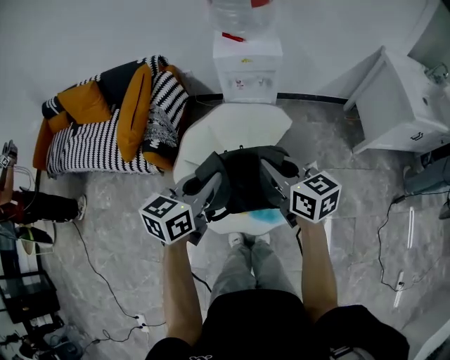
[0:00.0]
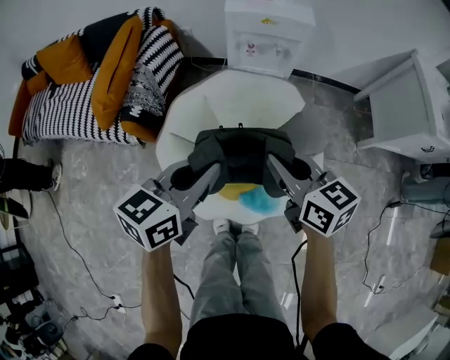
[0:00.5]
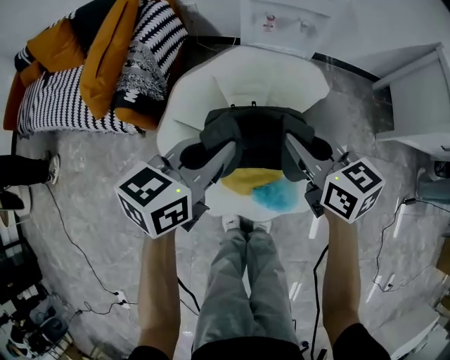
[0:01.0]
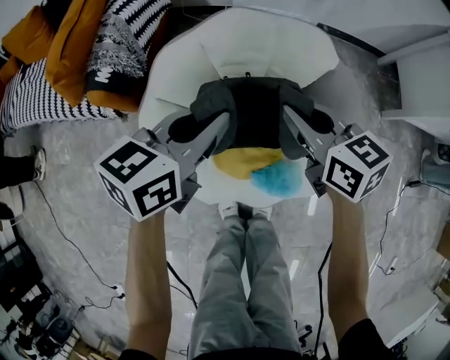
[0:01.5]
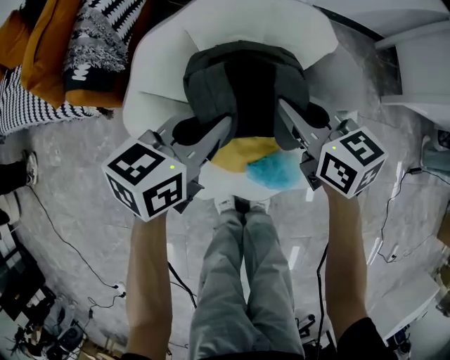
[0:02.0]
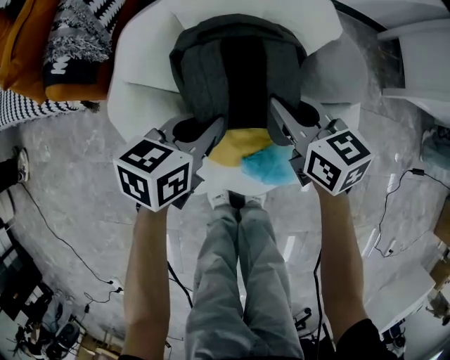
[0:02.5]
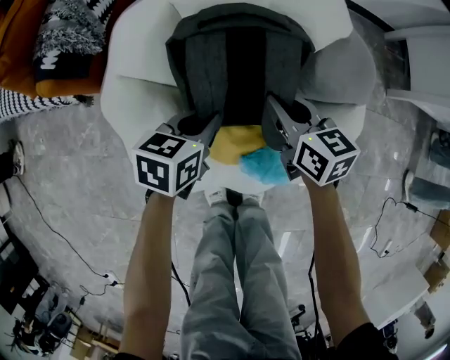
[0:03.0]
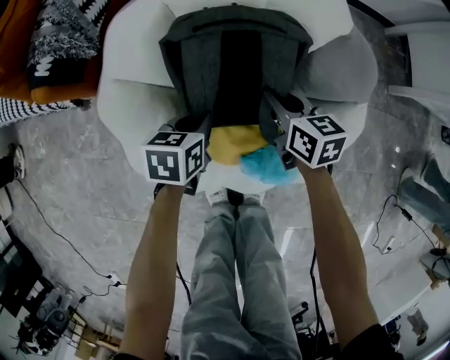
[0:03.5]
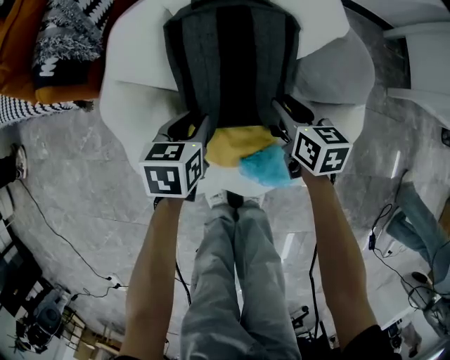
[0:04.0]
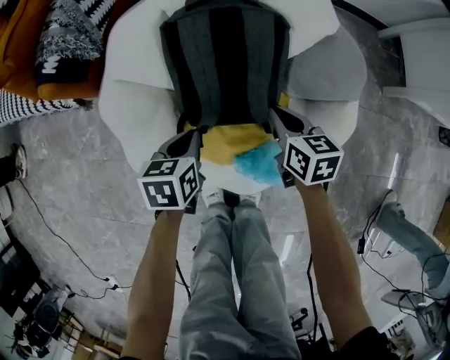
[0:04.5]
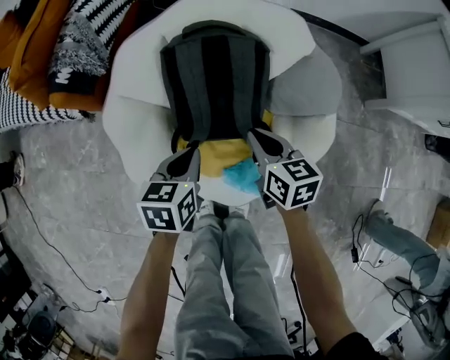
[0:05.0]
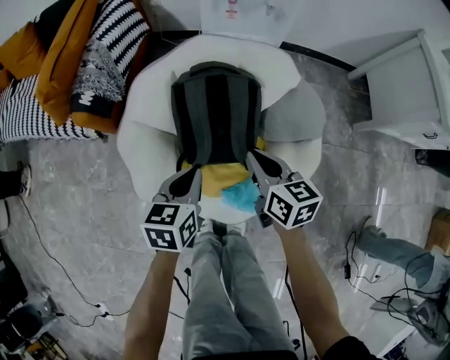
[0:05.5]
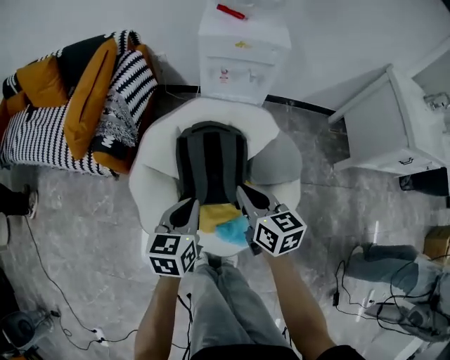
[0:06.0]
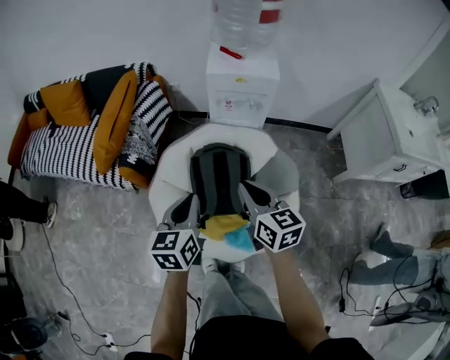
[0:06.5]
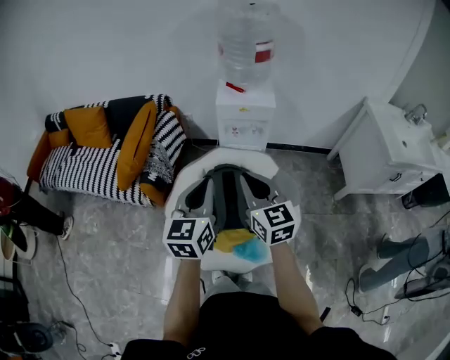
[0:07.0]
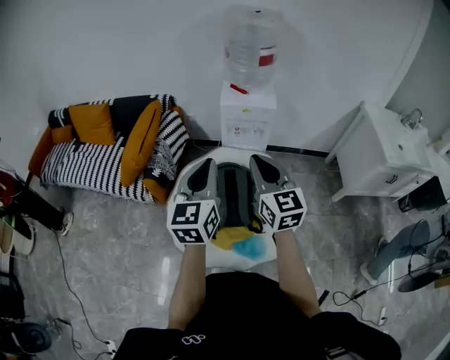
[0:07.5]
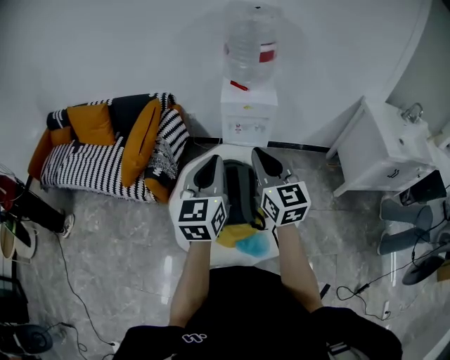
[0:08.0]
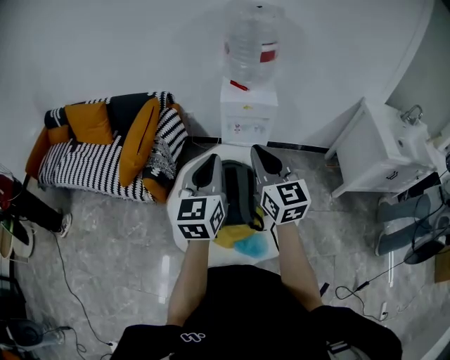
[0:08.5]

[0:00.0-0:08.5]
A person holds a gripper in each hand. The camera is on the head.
0:00.0 to 0:02.0: The grippers both shift downward by roughly 35 cm.
0:02.0 to 0:04.0: The two grippers go approximately 20 cm downward. The right gripper opens its fingers, while the left gripper swivels about 30 degrees, and opens.
0:04.0 to 0:06.5: The grippers both shift upward by some 50 cm. The right gripper rotates roughly 20 degrees, and closes up. Meanwhile the left gripper swivels roughly 30 degrees, and closes.
0:06.5 to 0:08.5: Both grippers move upward, about 20 cm. The left gripper swivels approximately 20 degrees, while the right gripper turns by approximately 30 degrees.

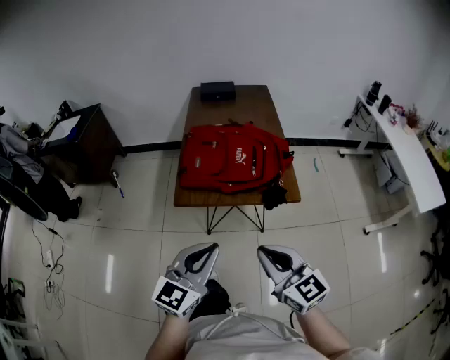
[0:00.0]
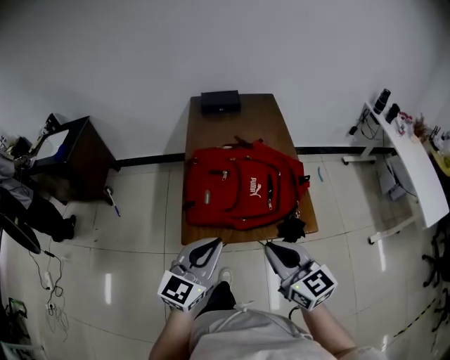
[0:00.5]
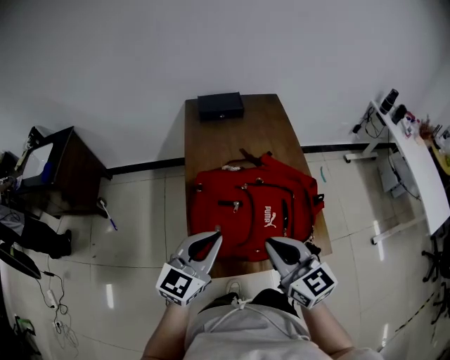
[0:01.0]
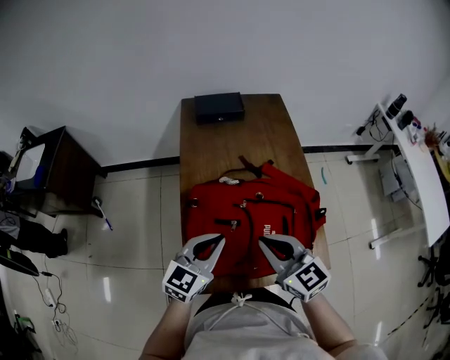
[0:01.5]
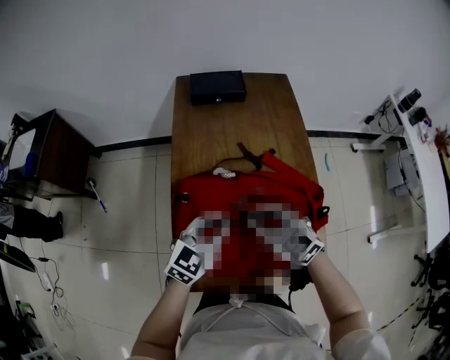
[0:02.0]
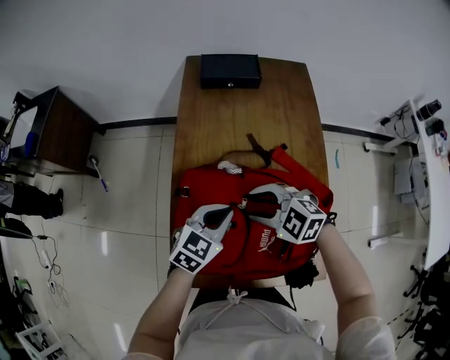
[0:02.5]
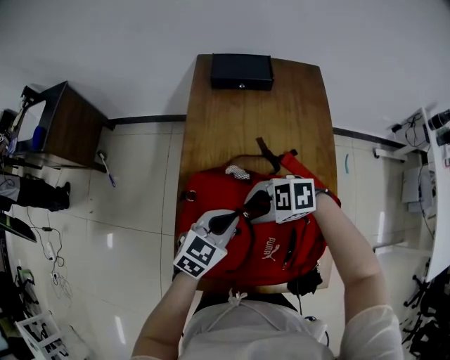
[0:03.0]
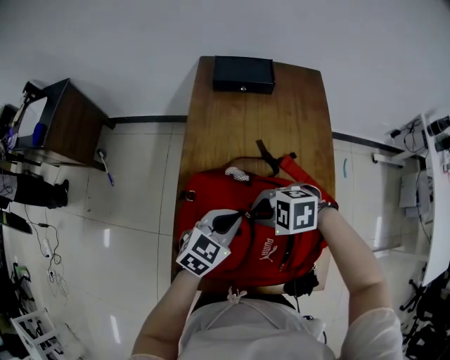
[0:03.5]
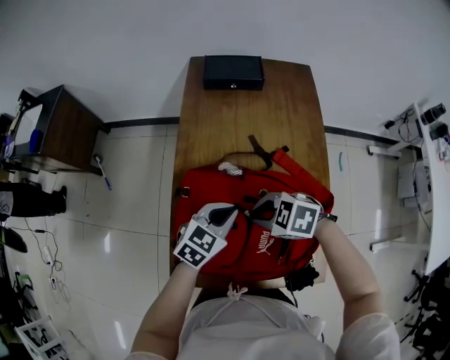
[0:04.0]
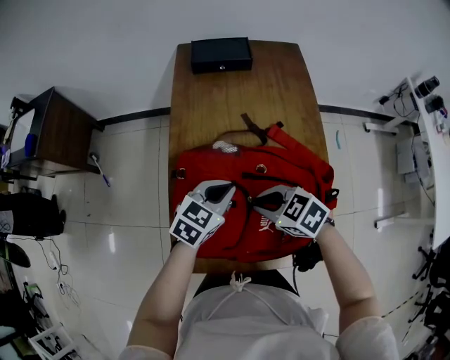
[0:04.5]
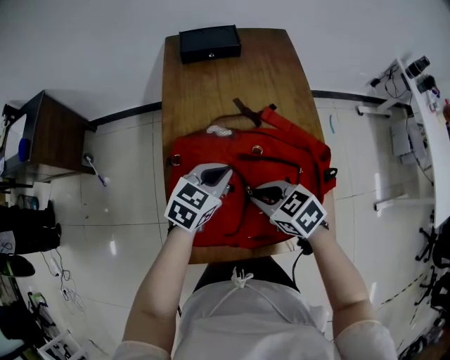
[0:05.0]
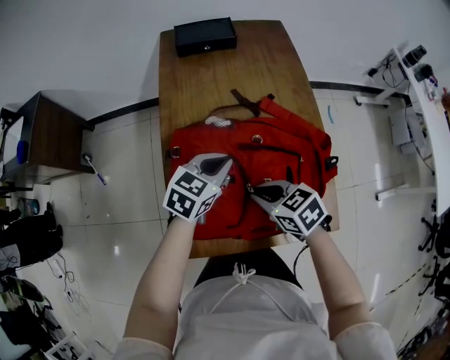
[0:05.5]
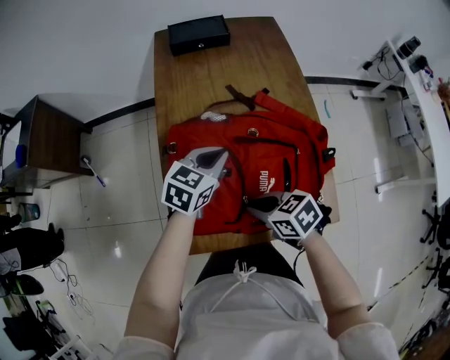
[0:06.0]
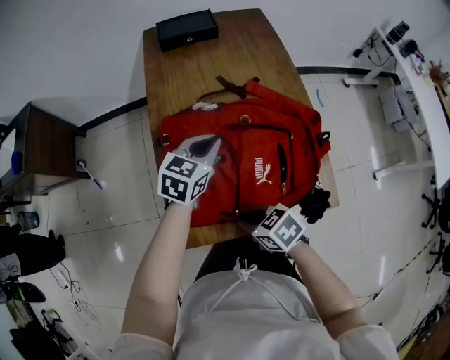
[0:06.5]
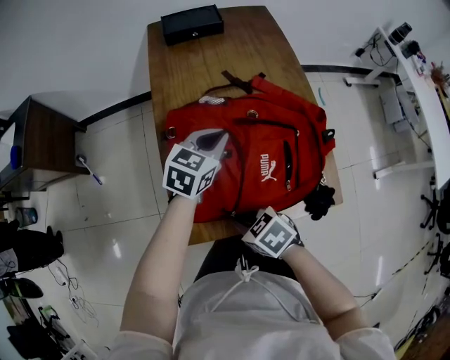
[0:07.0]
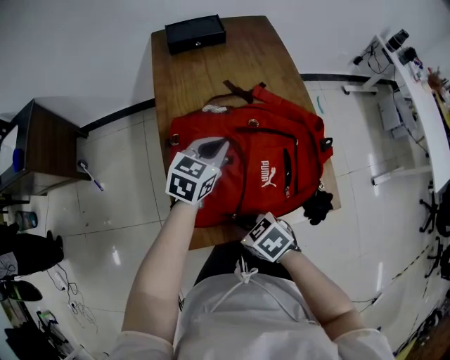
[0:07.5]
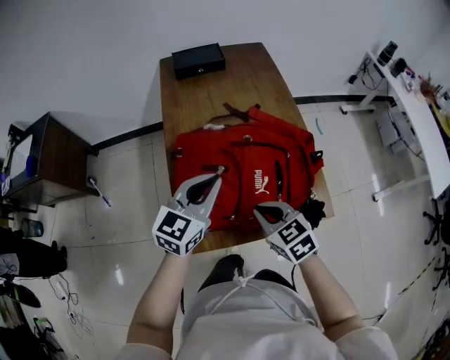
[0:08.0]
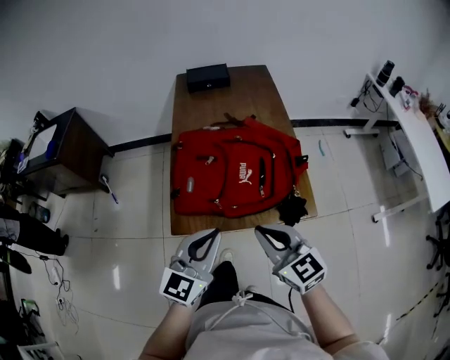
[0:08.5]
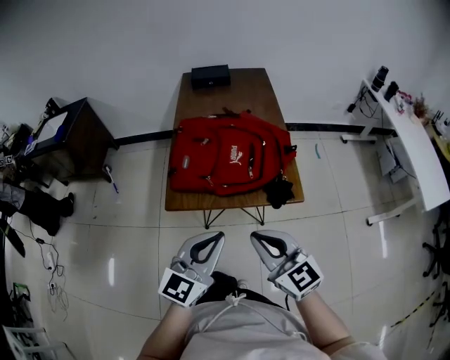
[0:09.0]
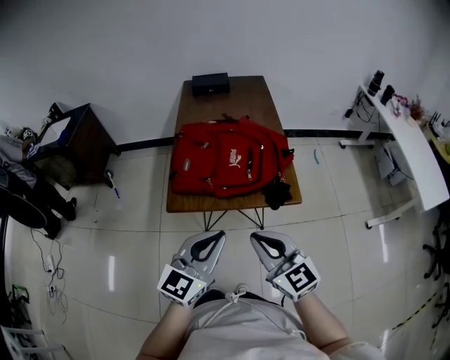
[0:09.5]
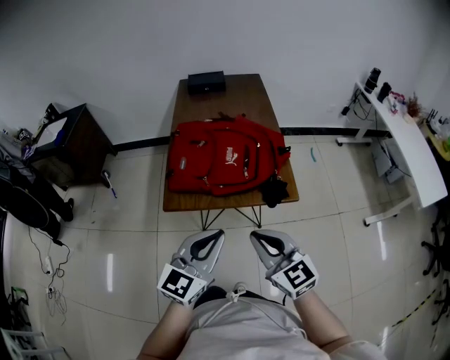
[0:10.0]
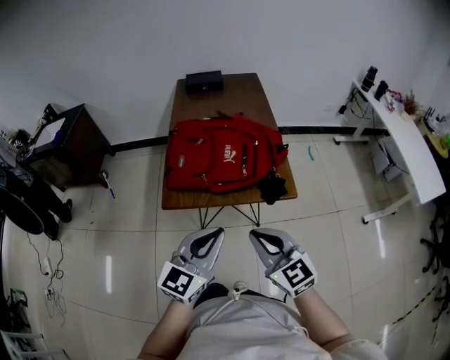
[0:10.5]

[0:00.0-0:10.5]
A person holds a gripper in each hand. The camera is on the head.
0:00.0 to 0:02.0: Both grippers are carried forward, about 50 cm. The right gripper turns by some 30 degrees.
0:02.0 to 0:04.0: The two grippers go about 5 cm downward. The right gripper turns by some 40 degrees, and opens and closes again.
0:04.0 to 0:06.5: The right gripper changes place by some 20 cm, and rolls clockwise, seen from behind, by about 40 degrees.
0:06.5 to 0:08.5: The left gripper moves backward and upward, about 35 cm, and turns by about 30 degrees, while the right gripper shifts roughly 25 cm upward, backward and to the right, and points its fingers some 30 degrees further upward.
0:08.5 to 0:10.5: Both grippers travel together backward, approximately 15 cm.

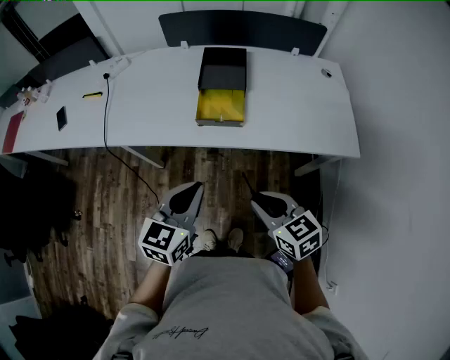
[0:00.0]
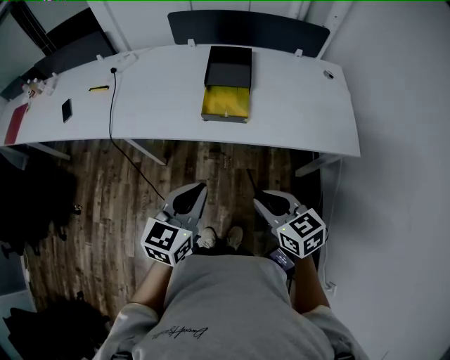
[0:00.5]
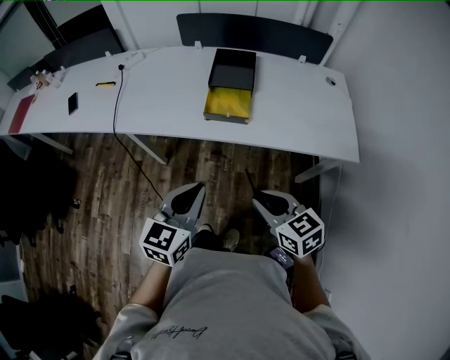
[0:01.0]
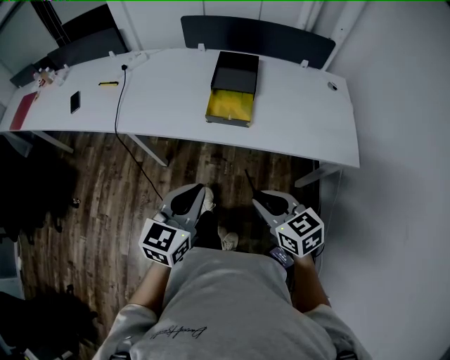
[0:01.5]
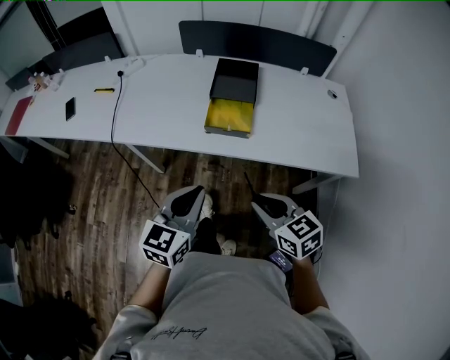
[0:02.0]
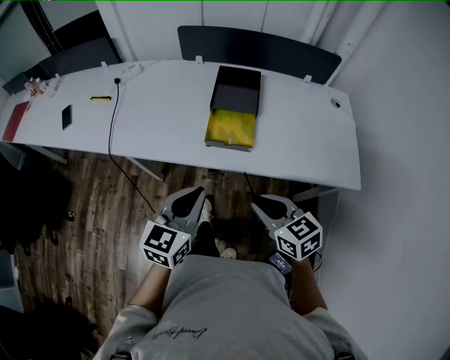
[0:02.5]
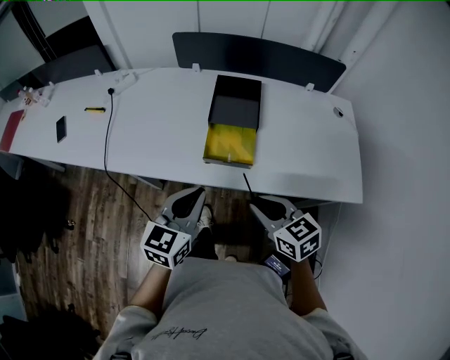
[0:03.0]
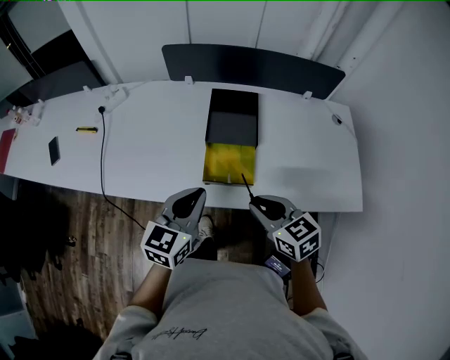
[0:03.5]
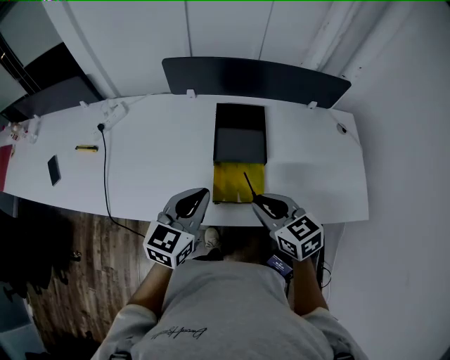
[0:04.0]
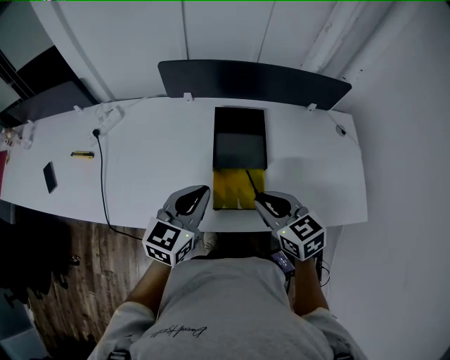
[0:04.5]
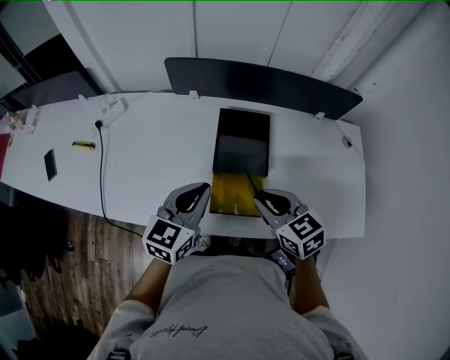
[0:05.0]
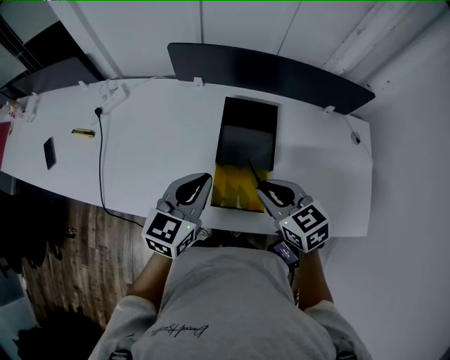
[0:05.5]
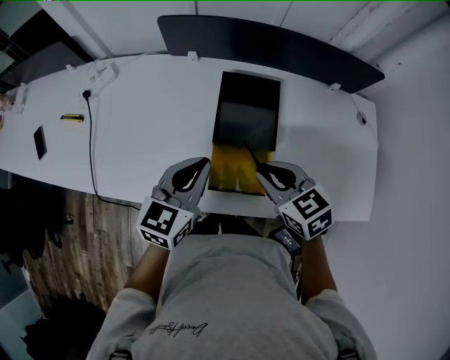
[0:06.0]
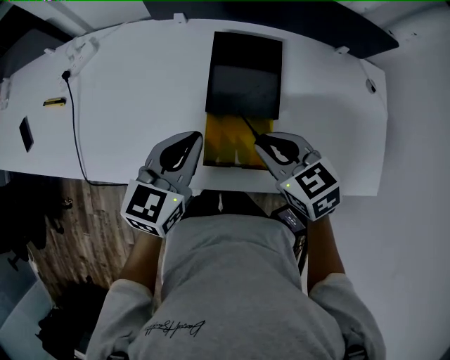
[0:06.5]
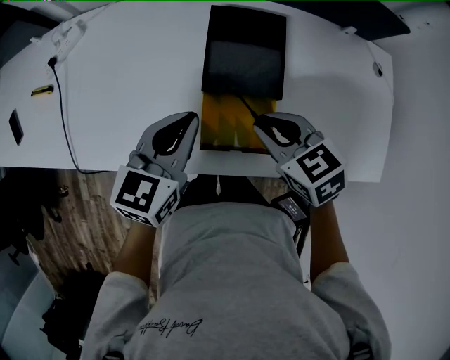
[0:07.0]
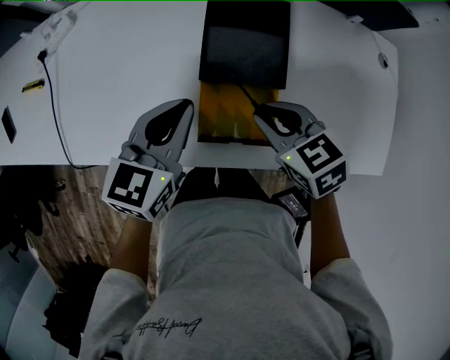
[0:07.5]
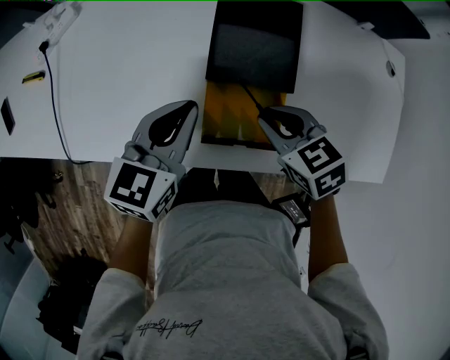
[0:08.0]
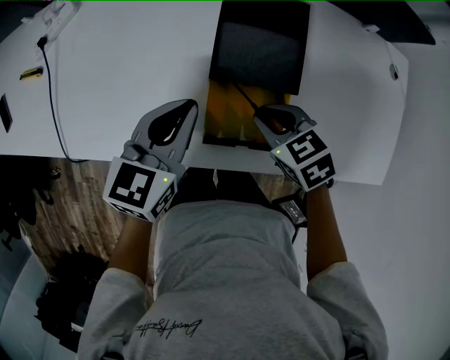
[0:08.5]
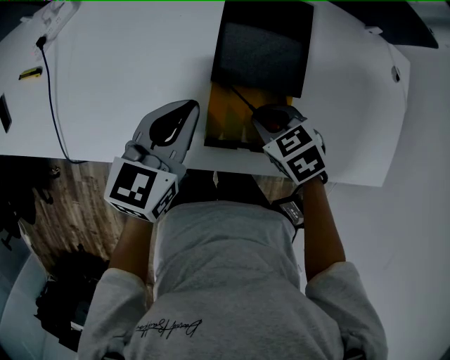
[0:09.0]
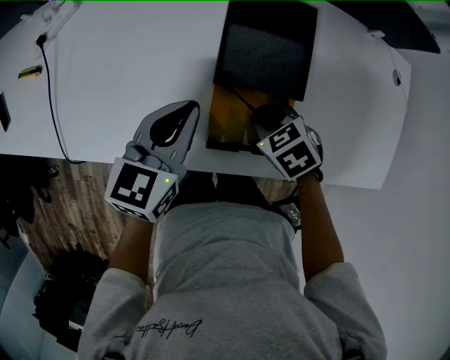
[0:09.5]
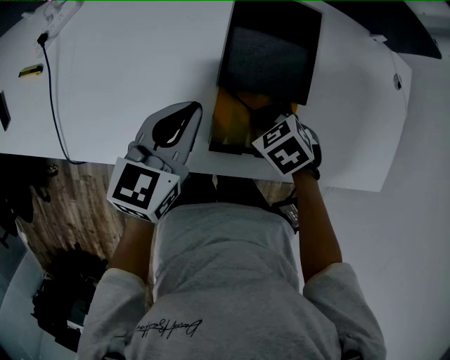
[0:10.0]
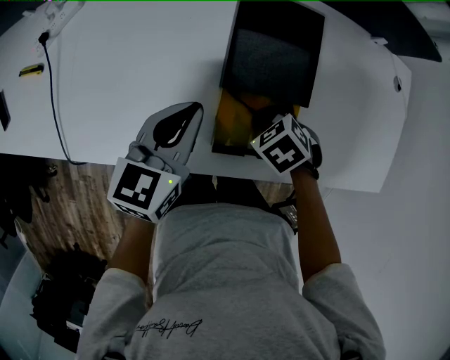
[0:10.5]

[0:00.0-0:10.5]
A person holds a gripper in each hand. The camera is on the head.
0:00.0 to 0:02.0: The grippers move only a little.
0:02.0 to 0:04.0: Both grippers move forward, some 30 cm.
0:04.0 to 0:06.5: Both grippers travel together forward and downward, about 10 cm.
0:06.5 to 0:08.5: The right gripper travels downward by some 10 cm, while the left gripper moves downward, approximately 5 cm.
0:08.5 to 0:10.5: The right gripper travels downward by about 5 cm, and swivels approximately 20 degrees.
